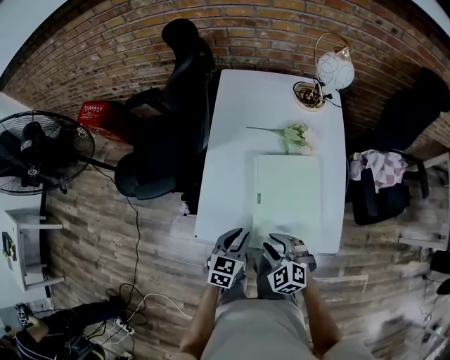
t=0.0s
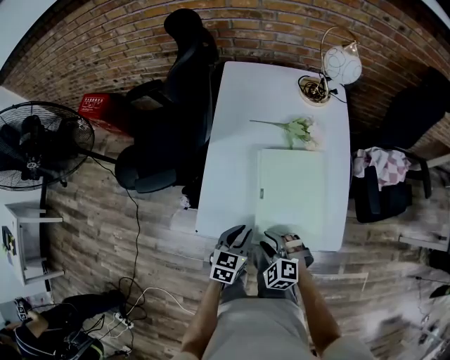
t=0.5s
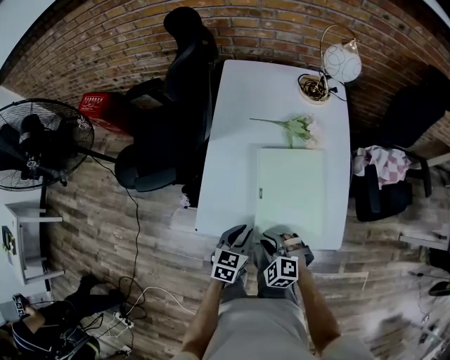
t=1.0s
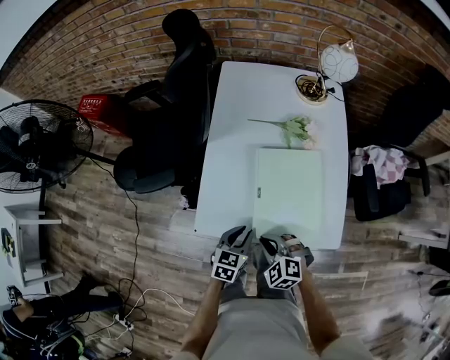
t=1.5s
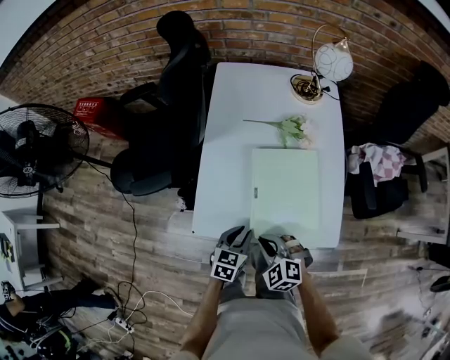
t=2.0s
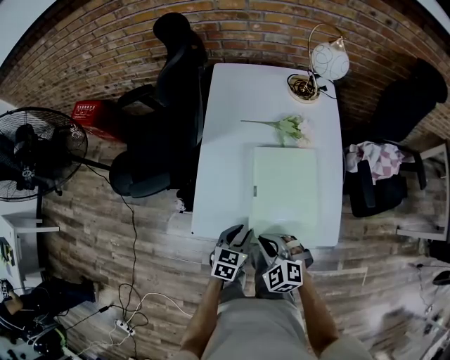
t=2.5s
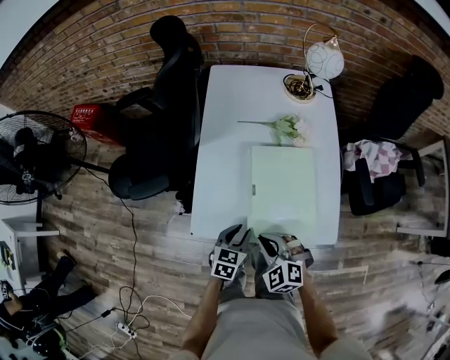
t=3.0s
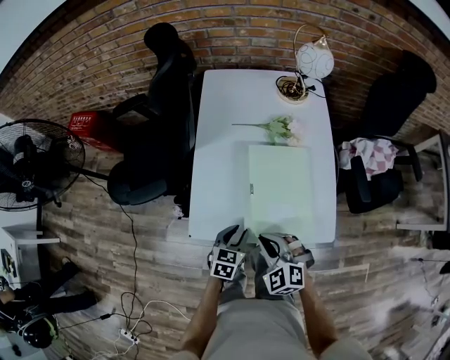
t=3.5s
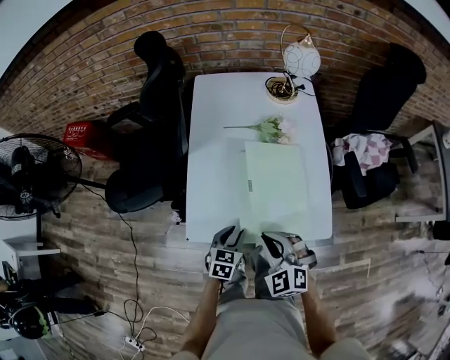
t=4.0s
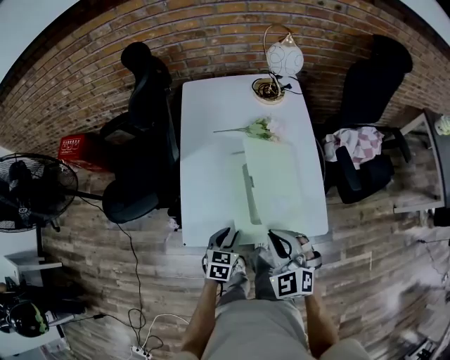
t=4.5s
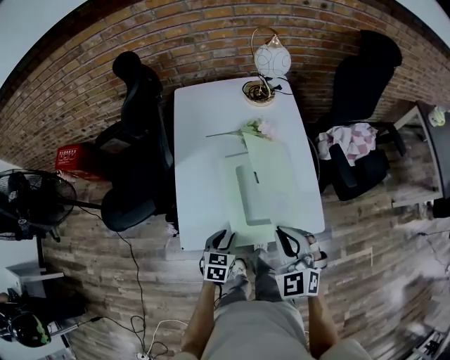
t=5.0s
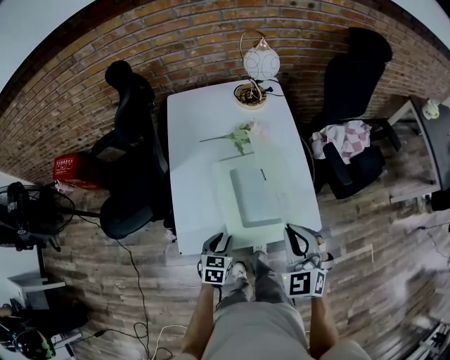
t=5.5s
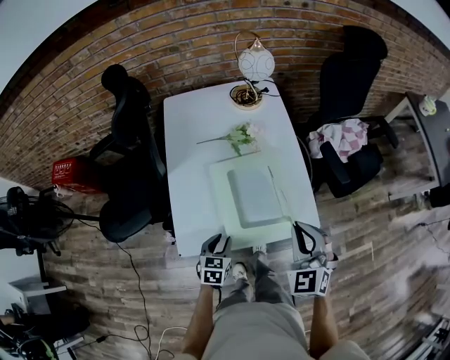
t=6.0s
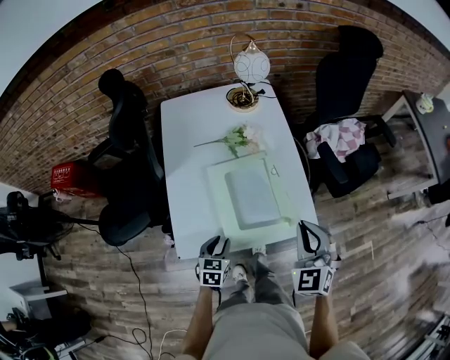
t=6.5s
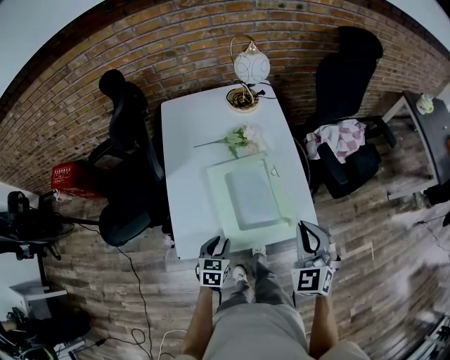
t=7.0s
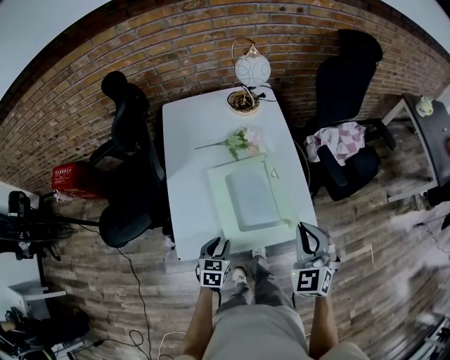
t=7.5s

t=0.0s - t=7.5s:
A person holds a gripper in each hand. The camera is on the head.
t=0.0s - t=2.0s: The right gripper closes up. The left gripper shifts roughly 5 cm downward.
t=2.0s - t=4.0s: The right gripper heads upward, covering about 10 cm.
t=4.0s - t=5.5s: The right gripper travels to the right and upward by about 15 cm, and swivels about 30 degrees.
t=5.5s - t=7.5s: The right gripper shifts by about 5 cm.

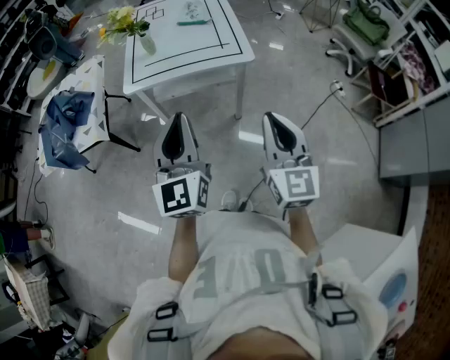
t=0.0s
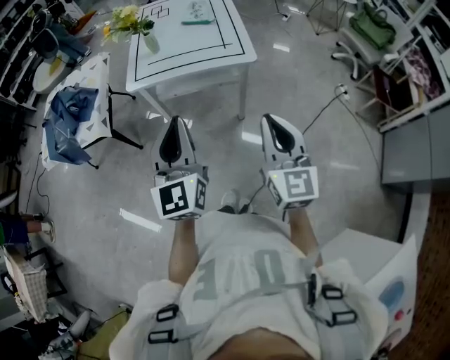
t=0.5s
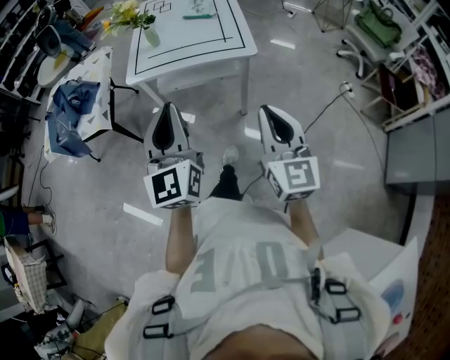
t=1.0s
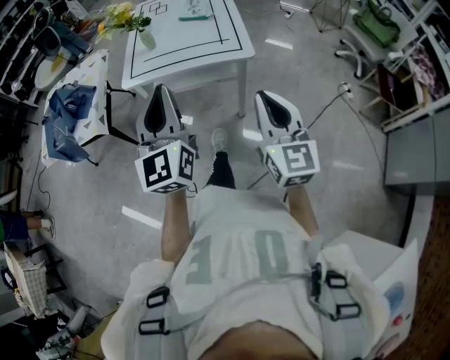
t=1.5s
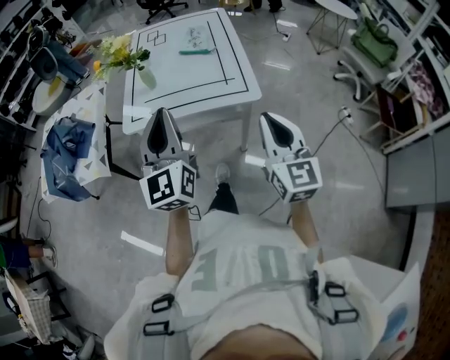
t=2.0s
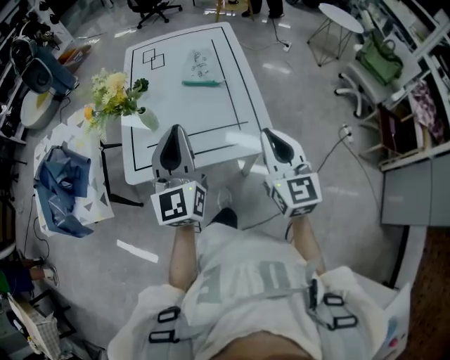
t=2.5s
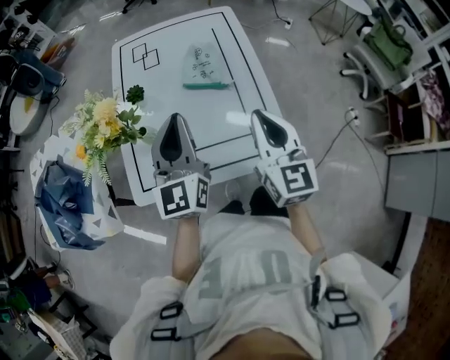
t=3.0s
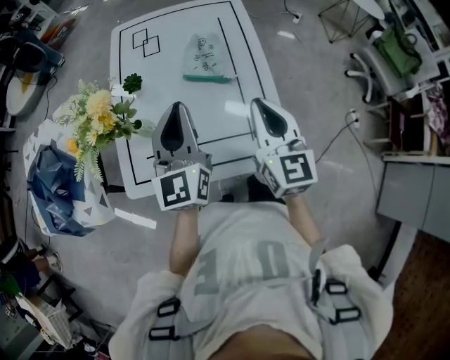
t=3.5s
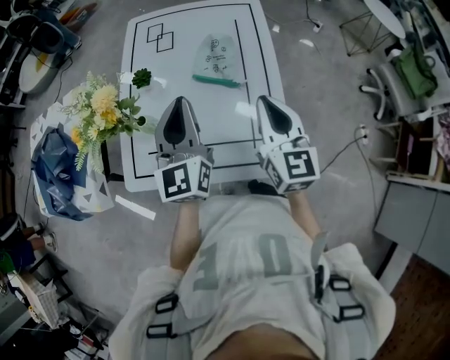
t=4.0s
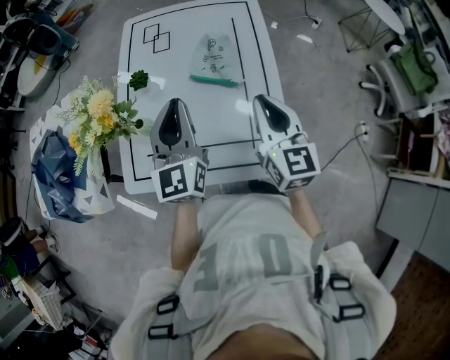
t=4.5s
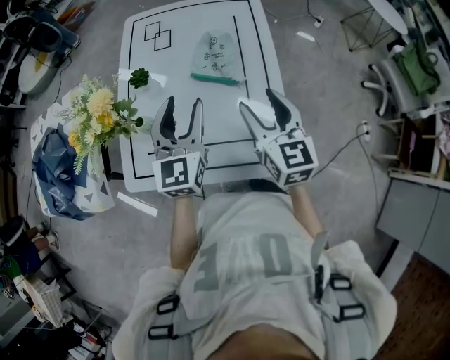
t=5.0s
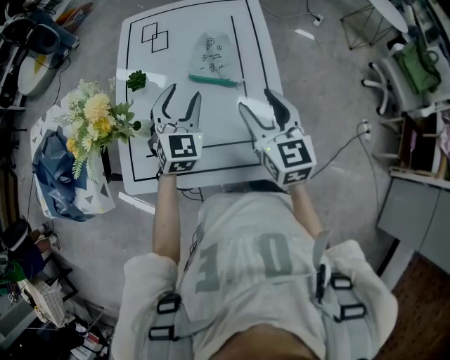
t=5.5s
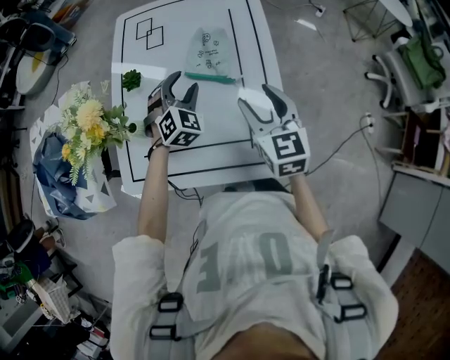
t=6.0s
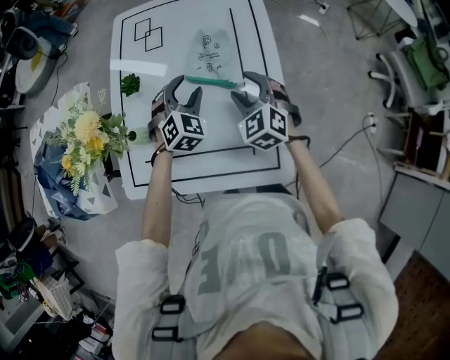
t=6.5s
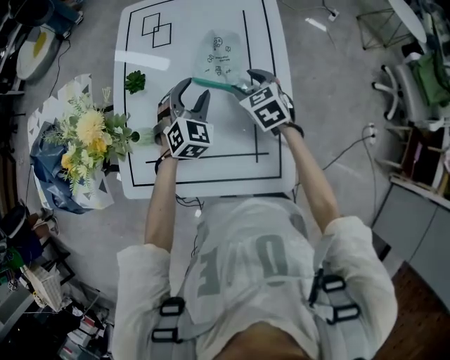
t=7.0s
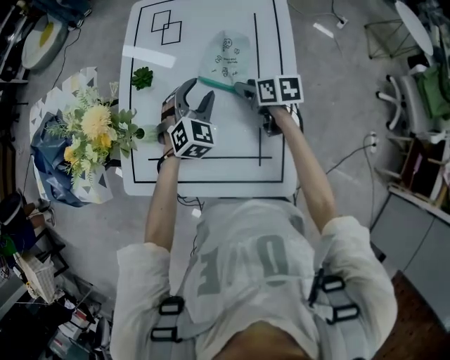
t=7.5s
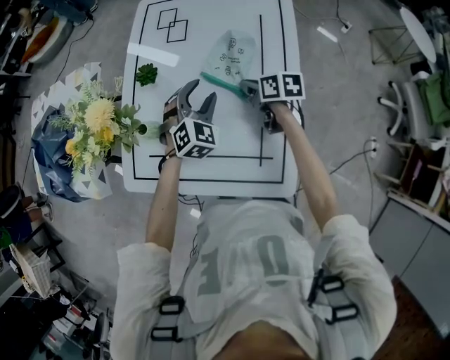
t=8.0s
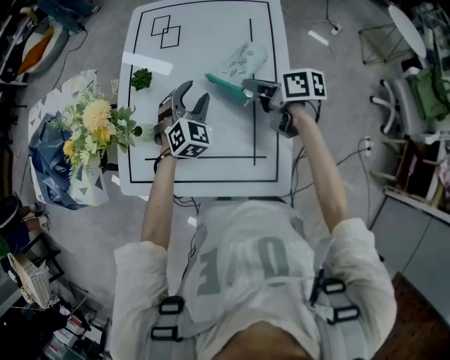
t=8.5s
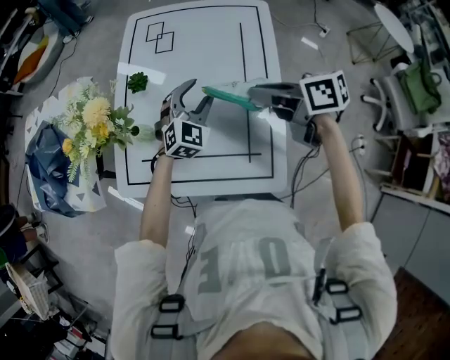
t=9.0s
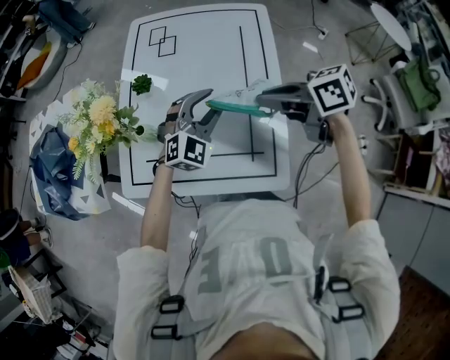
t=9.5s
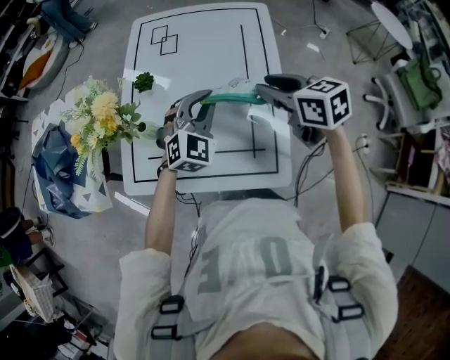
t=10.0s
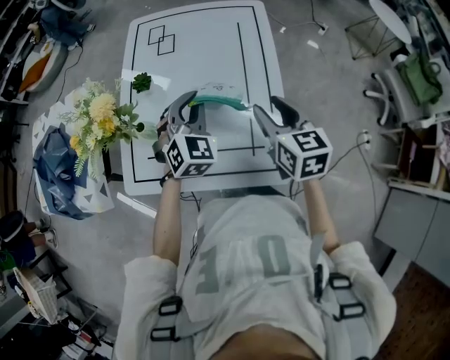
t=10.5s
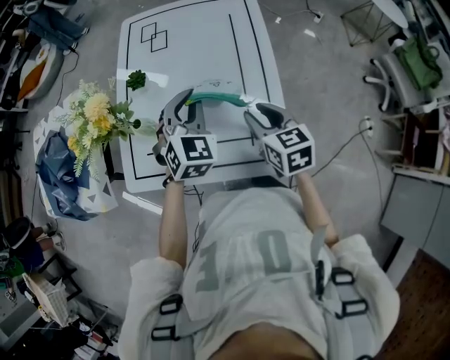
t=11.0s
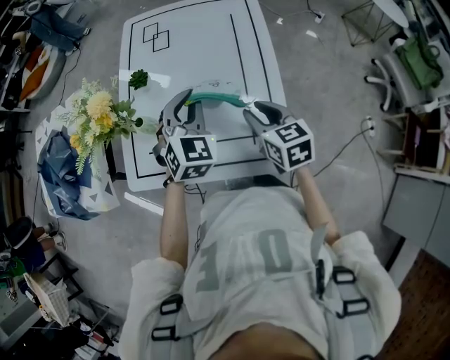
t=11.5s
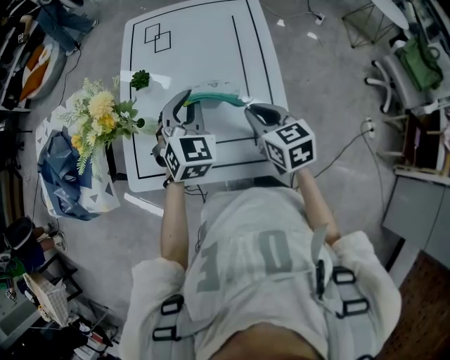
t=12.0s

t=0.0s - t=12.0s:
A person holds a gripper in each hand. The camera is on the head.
t=0.0s - t=2.0s: The grippers both shift forward by about 20 cm.
t=2.0s - t=4.0s: Both grippers move forward, about 40 cm.
t=4.0s - t=6.0s: The right gripper shifts about 5 cm downward, and opens. Meanwhile the left gripper goes roughly 20 cm downward and forward, rotates around the line of its fingers by some 50 degrees, clockwise from behind, and opens up.
t=6.0s - t=8.0s: The right gripper travels downward and forward by roughly 20 cm, turns by about 50 degrees, and closes up.
t=8.0s - t=10.0s: The left gripper moves upward and backward, about 10 cm, and closes up; the right gripper heads upward and backward, covering some 20 cm, swivels approximately 30 degrees, and opens its fingers.
t=10.0s - t=12.0s: The right gripper travels backward and downward by approximately 10 cm. Meanwhile the left gripper ends up roughly 5 cm from where it was.

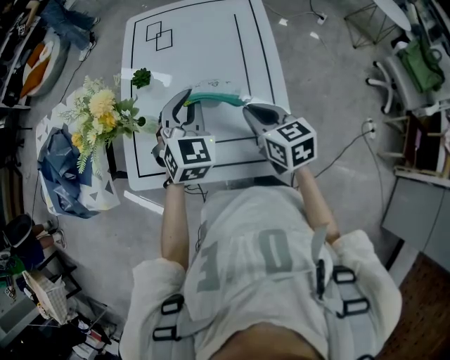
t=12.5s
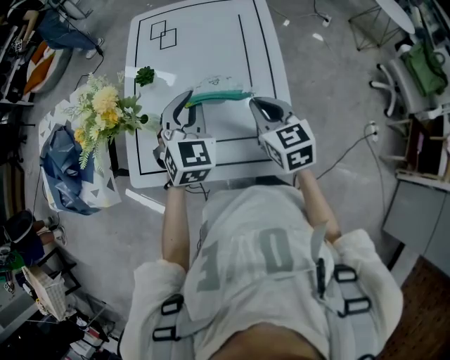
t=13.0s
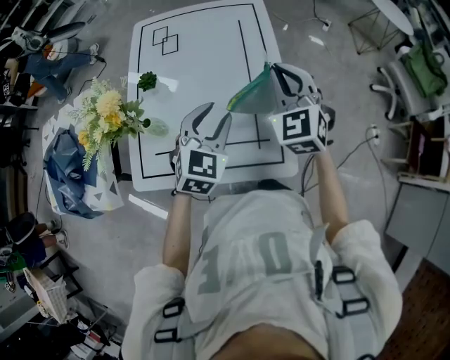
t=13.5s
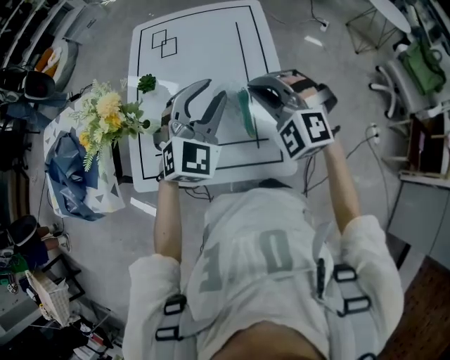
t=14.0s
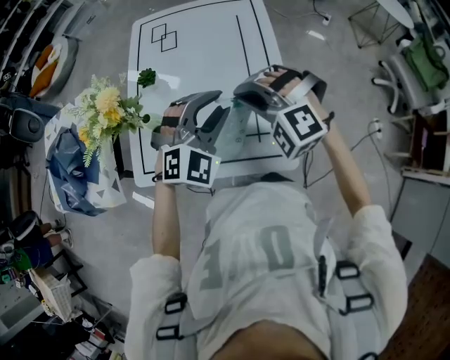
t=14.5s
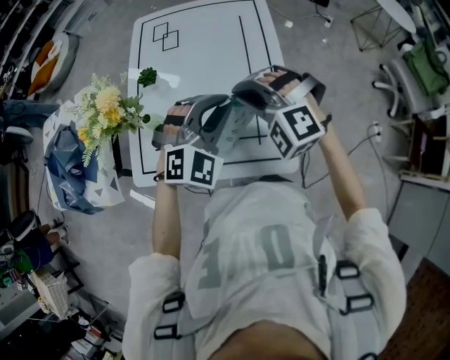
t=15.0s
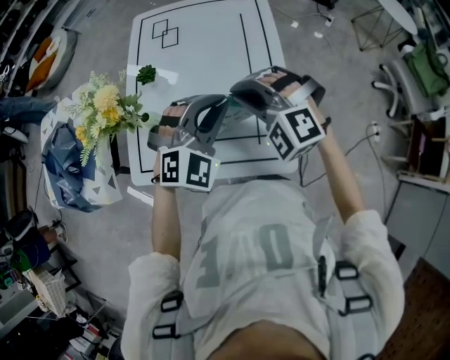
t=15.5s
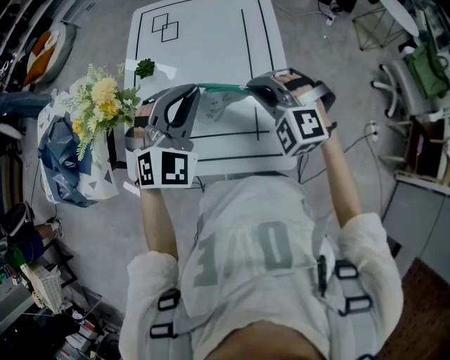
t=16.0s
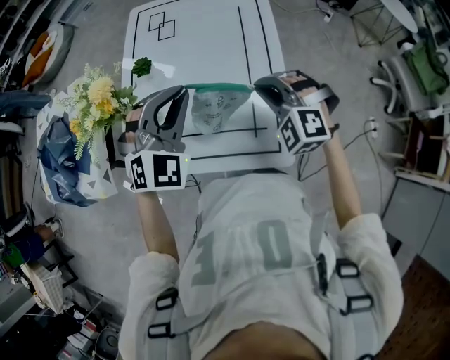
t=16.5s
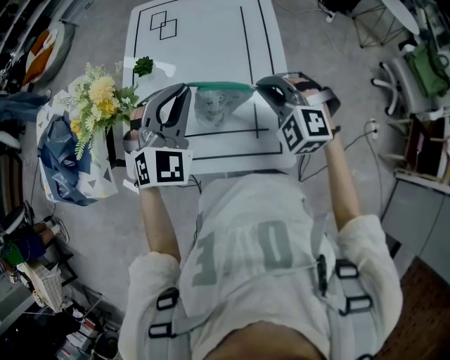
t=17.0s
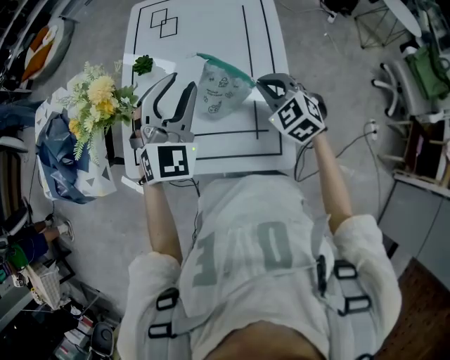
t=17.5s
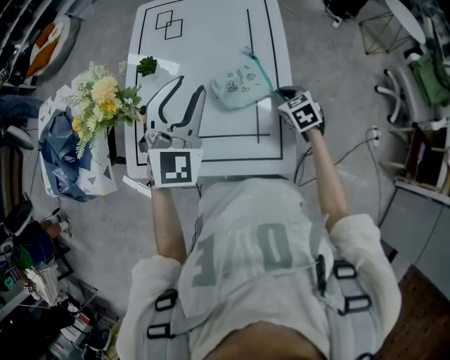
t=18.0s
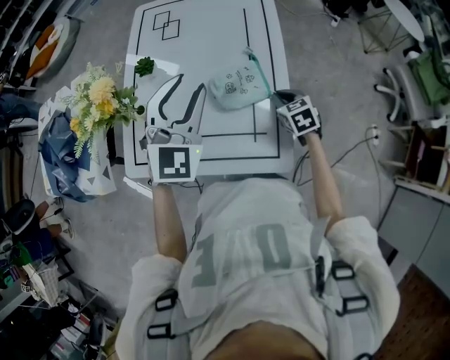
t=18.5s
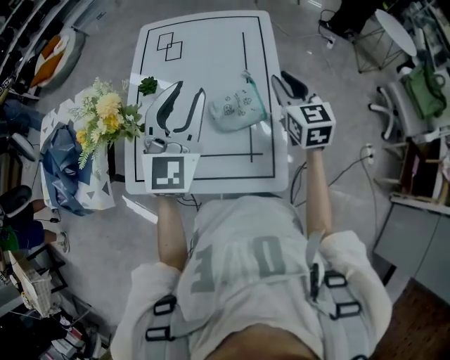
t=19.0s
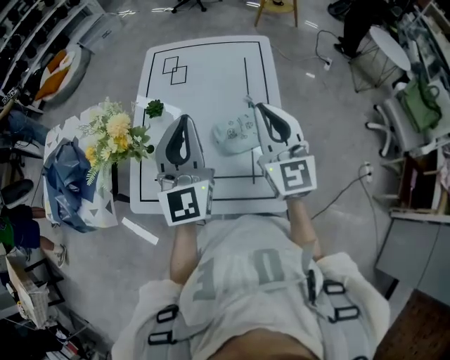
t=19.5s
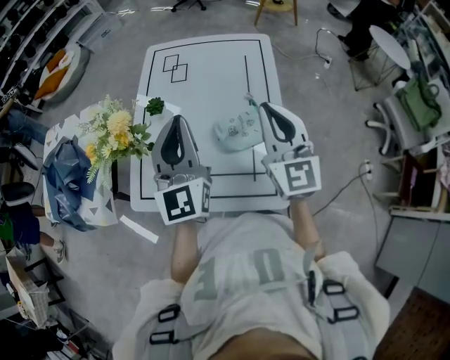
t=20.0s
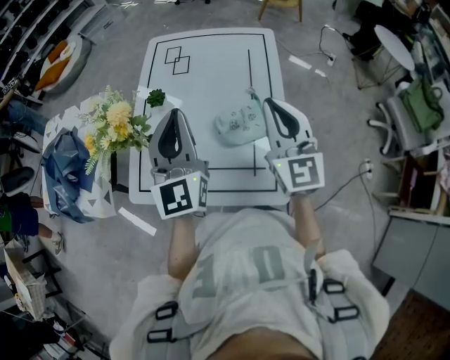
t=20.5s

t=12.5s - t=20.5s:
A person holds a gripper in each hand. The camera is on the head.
t=12.5s - t=14.5s: The left gripper goes about 10 cm to the right and backward, rotates some 40 degrees, and opens. Meanwhile the right gripper moves upward, roughly 10 cm, and twists approximately 90 degrees counterclockwise, seen from behind.
t=14.5s - t=16.5s: The left gripper moves to the left, roughly 5 cm, and closes up. Meanwhile the right gripper goes roughly 5 cm to the right.
t=16.5s - t=18.5s: The left gripper changes its angle by about 20 degrees, and opens. Meanwhile the right gripper goes approximately 20 cm downward and to the right, and twists roughly 60 degrees clockwise, seen from behind.
t=18.5s - t=20.5s: The right gripper goes approximately 30 cm upward, and points its fingers roughly 50 degrees further upward. Meanwhile the left gripper goes some 10 cm to the left and upward, swivels some 40 degrees, and closes its fingers.
